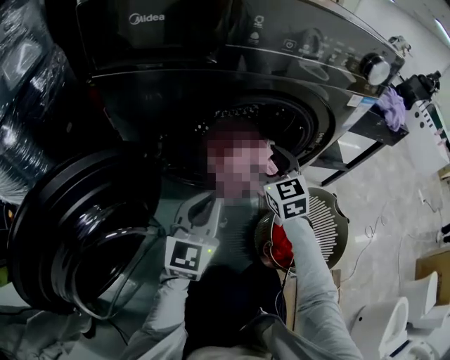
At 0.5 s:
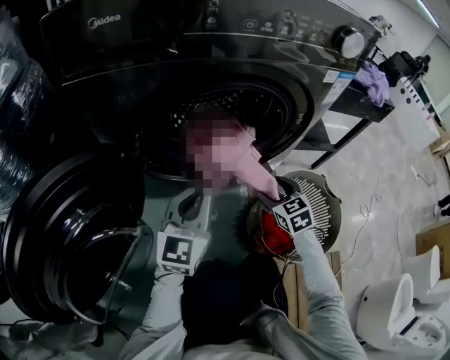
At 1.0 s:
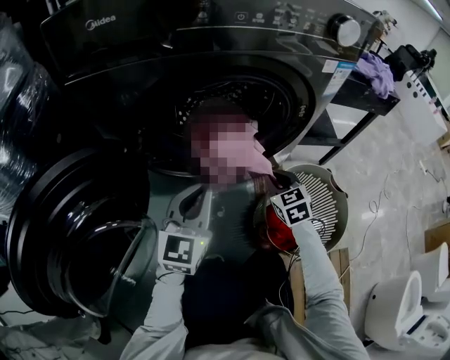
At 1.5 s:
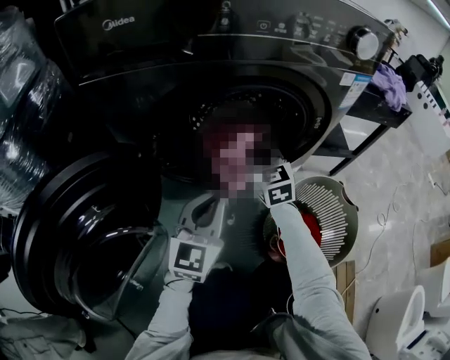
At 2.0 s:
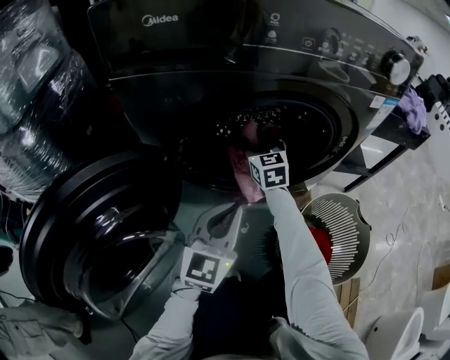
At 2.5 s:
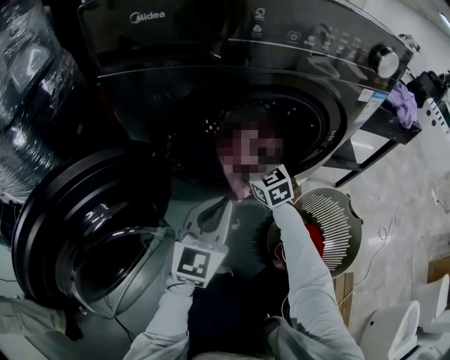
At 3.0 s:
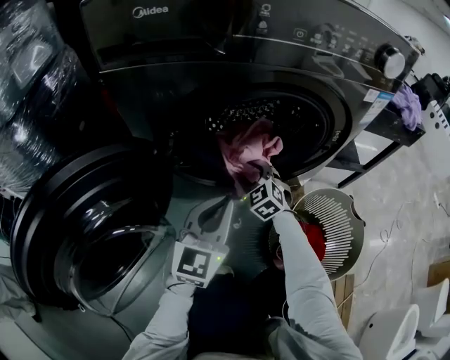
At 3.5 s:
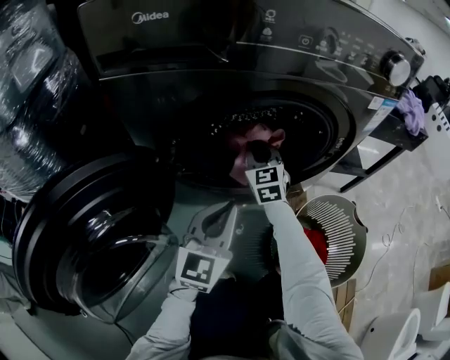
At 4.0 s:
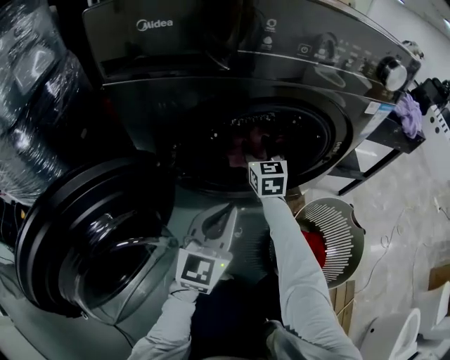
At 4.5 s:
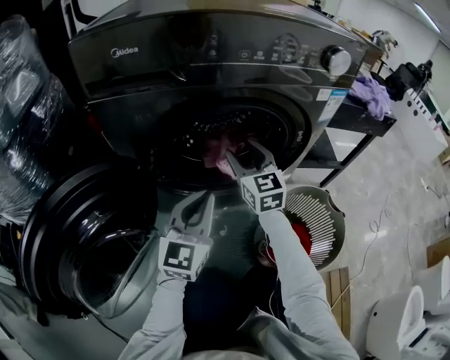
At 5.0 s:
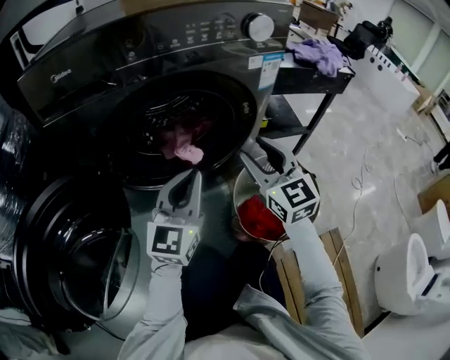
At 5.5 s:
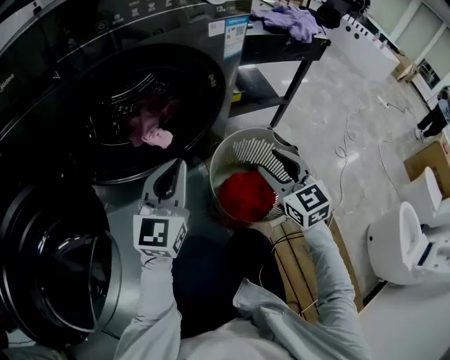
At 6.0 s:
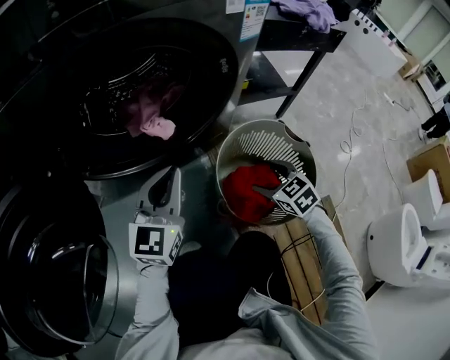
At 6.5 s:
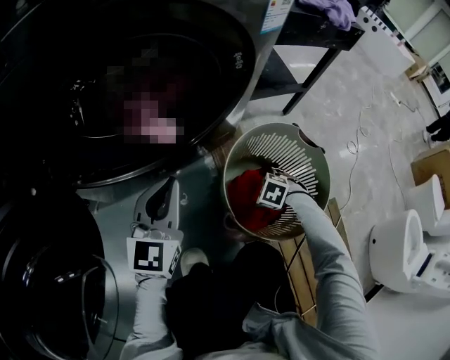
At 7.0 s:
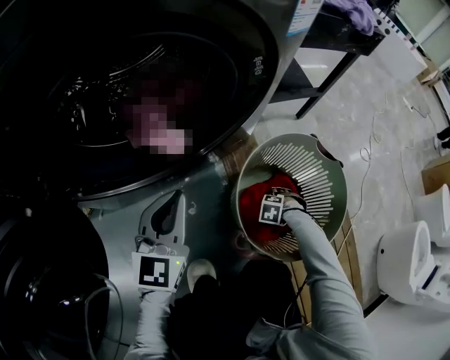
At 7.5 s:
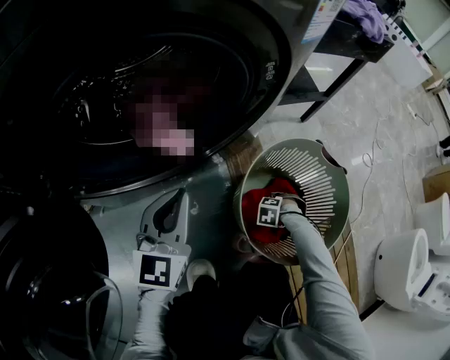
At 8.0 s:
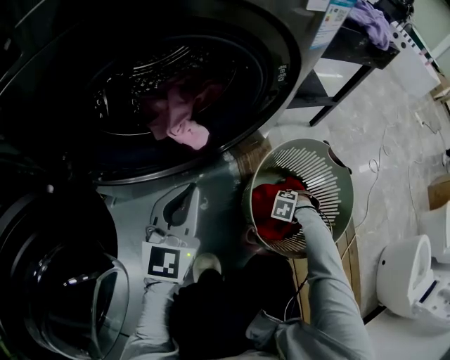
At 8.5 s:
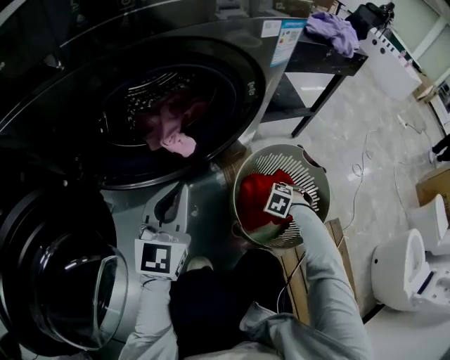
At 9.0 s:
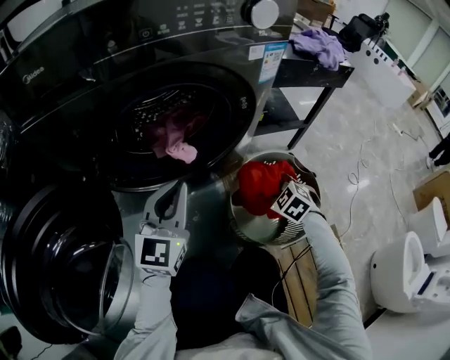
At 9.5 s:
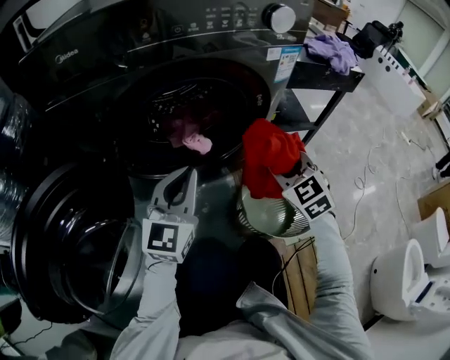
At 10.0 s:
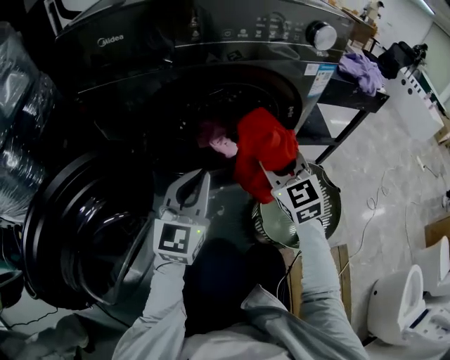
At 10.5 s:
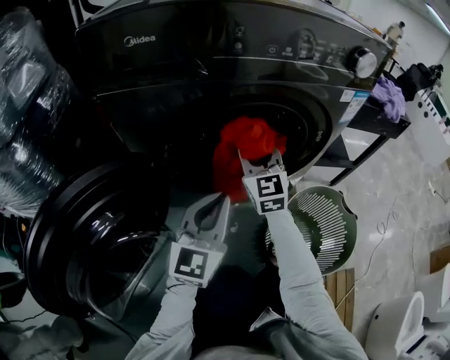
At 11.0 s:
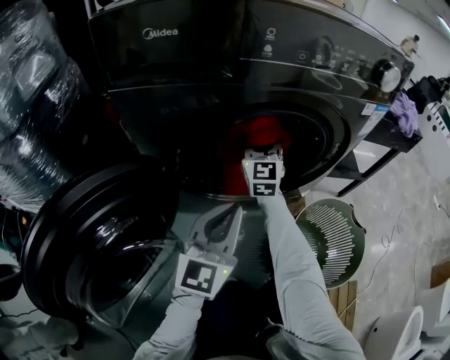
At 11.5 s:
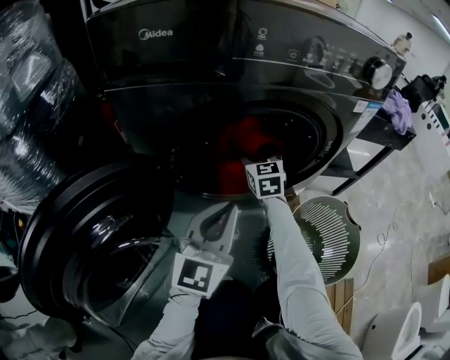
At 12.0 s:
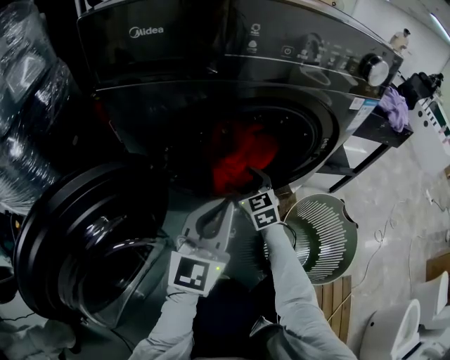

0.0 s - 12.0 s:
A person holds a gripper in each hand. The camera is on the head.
0.0 s - 2.0 s: The right gripper is displaced forward and to the left by approximately 15 cm, and closes and opens again.
2.0 s - 4.0 s: The right gripper reaches some 10 cm downward, then returns, and closes and opens again.
4.0 s - 6.0 s: The left gripper heads to the right, covering about 10 cm, while the right gripper heads to the right, backward and downward, covering approximately 40 cm, and tips its fingers downward by some 30 degrees.
6.0 s - 8.0 s: The right gripper moves downward, approximately 25 cm, tilts its fingers some 40 degrees downward, and closes; the left gripper heads downward, covering about 5 cm.
8.0 s - 10.0 s: The right gripper goes some 50 cm upward, and points its fingers some 70 degrees further upward. Meanwhile the left gripper moves upward, approximately 15 cm.
10.0 s - 12.0 s: The right gripper is displaced downward, to the left and forward by roughly 20 cm, and opens up.

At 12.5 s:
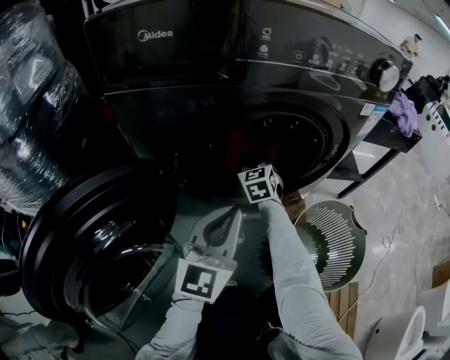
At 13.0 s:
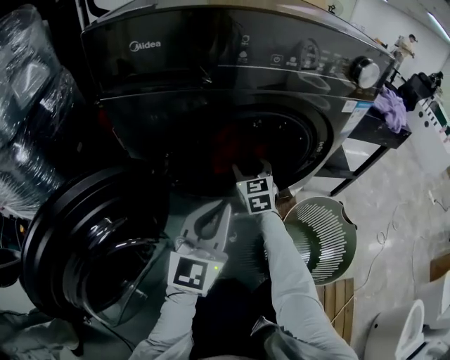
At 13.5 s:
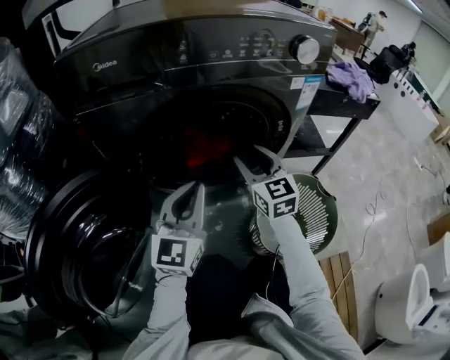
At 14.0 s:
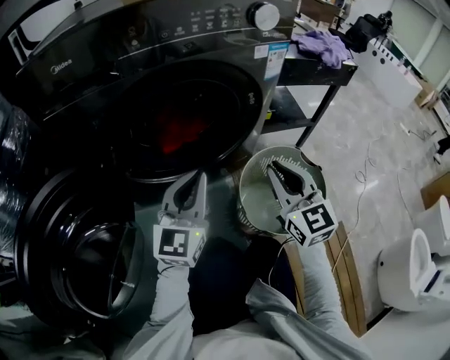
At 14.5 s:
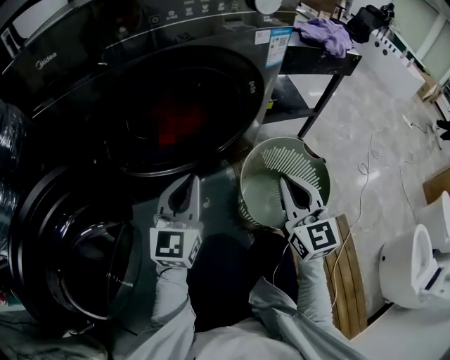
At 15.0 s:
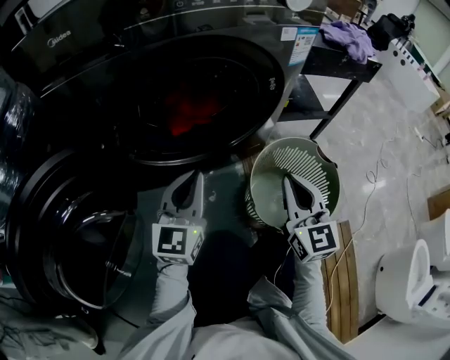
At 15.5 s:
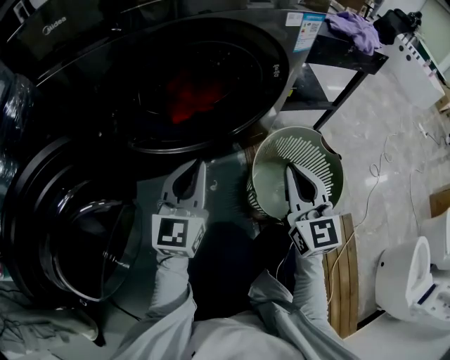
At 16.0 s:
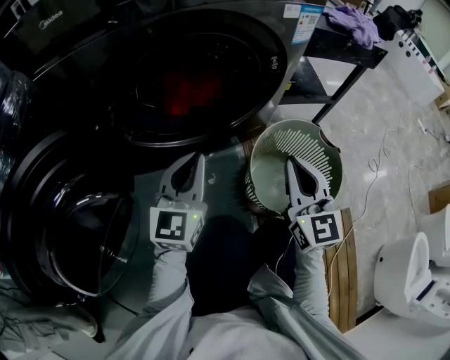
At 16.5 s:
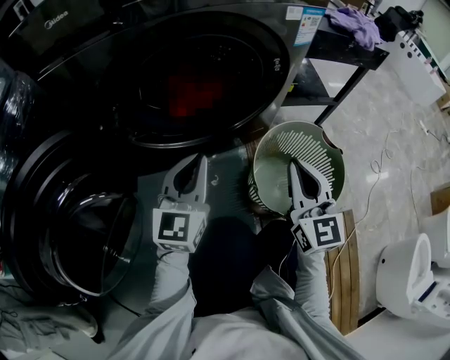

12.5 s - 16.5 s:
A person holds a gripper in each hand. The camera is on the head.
12.5 s - 14.5 s: The right gripper goes approximately 40 cm backward and to the right, and changes its angle by roughly 30 degrees, while the left gripper is displaced to the right by roughly 5 cm.
14.5 s - 16.5 s: The grippers make only small movements.

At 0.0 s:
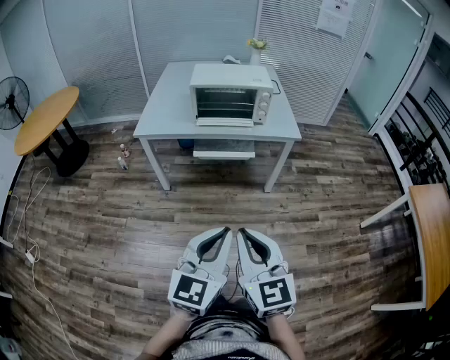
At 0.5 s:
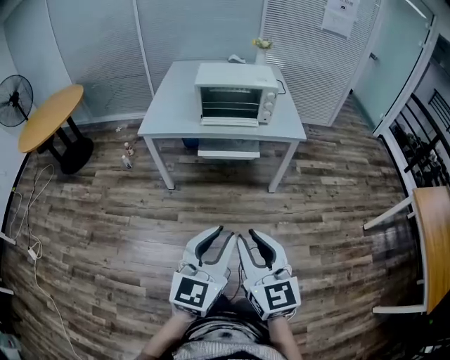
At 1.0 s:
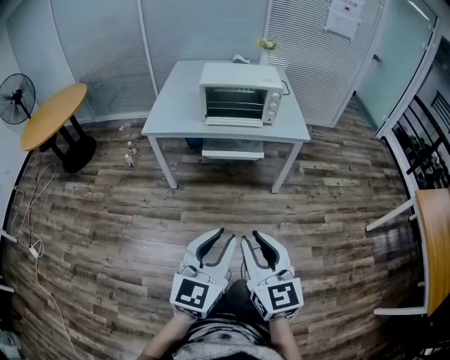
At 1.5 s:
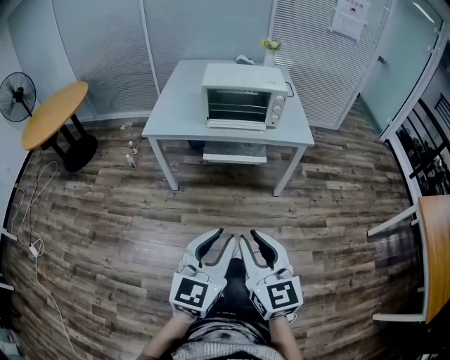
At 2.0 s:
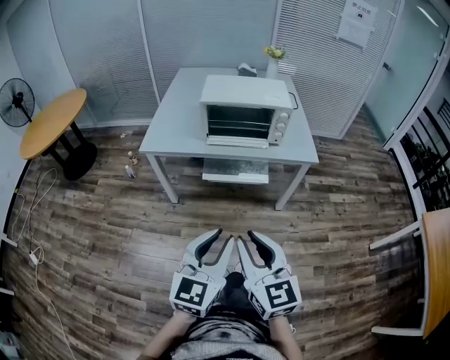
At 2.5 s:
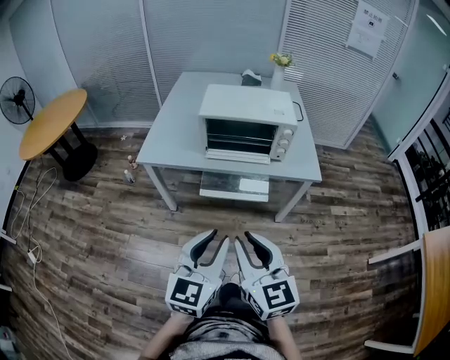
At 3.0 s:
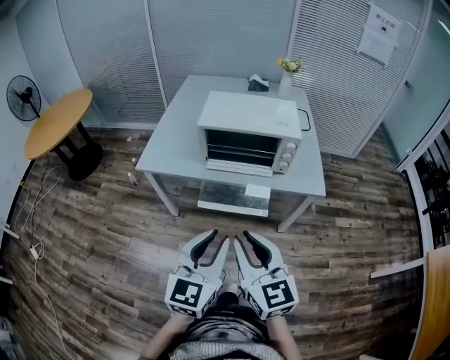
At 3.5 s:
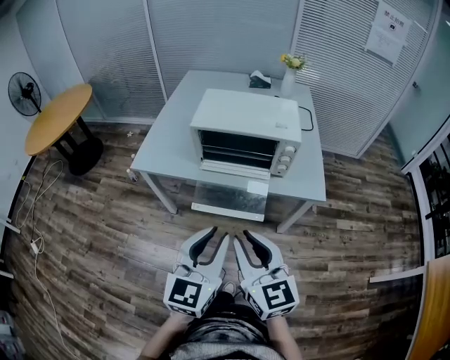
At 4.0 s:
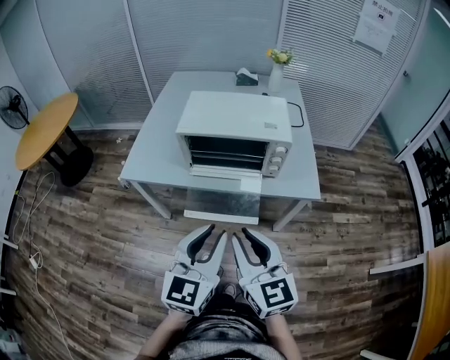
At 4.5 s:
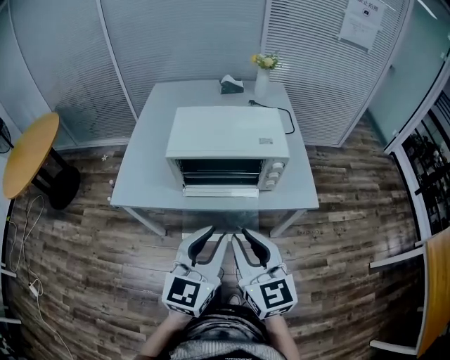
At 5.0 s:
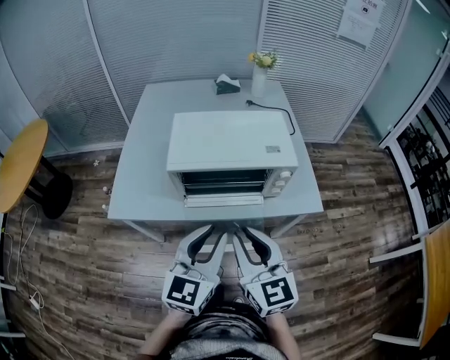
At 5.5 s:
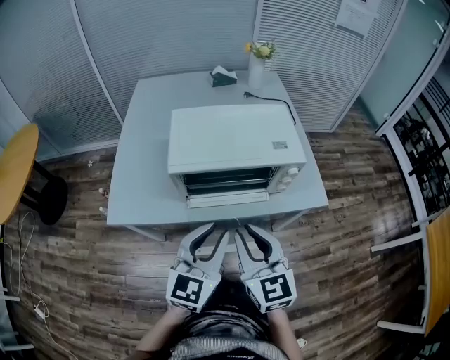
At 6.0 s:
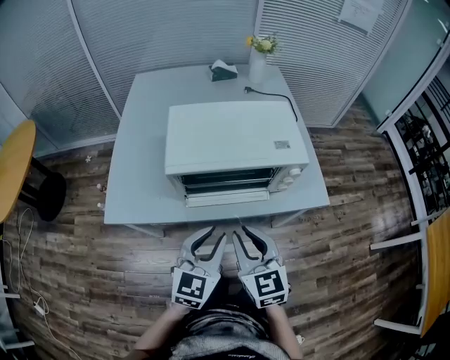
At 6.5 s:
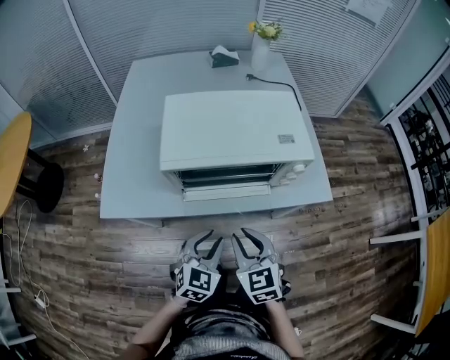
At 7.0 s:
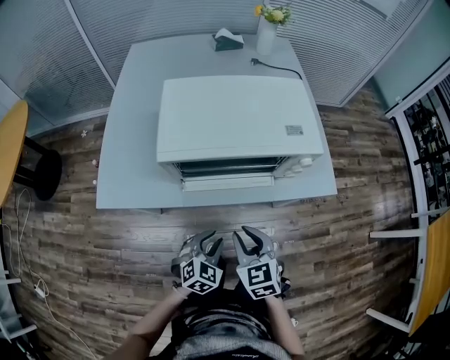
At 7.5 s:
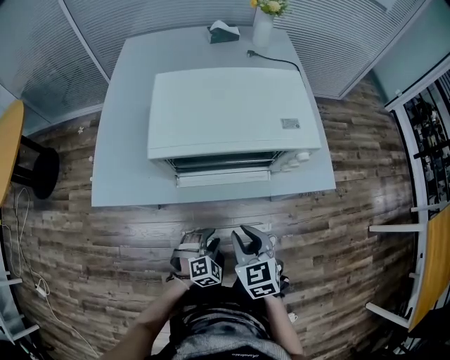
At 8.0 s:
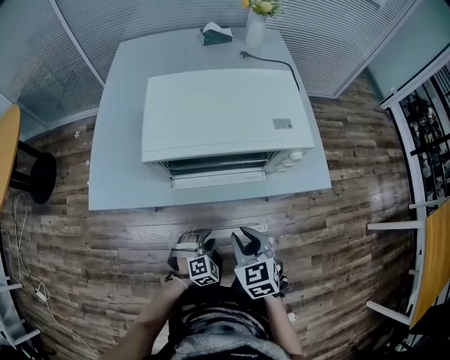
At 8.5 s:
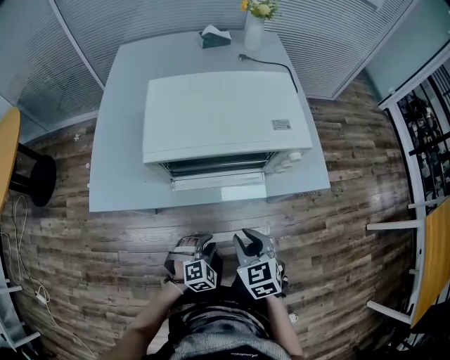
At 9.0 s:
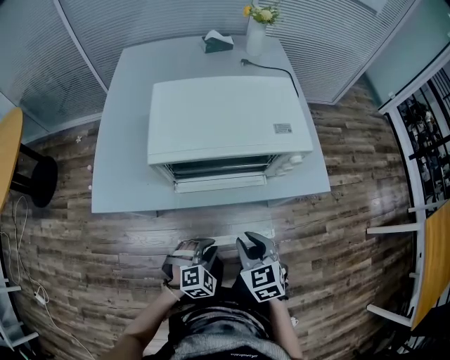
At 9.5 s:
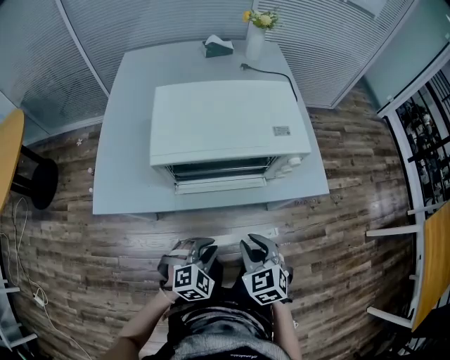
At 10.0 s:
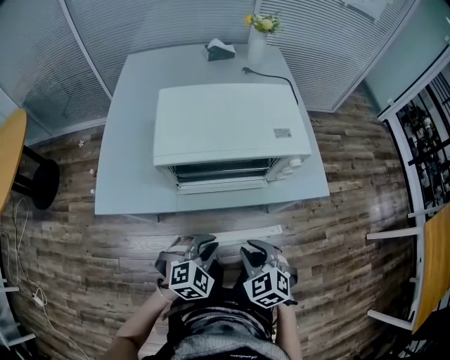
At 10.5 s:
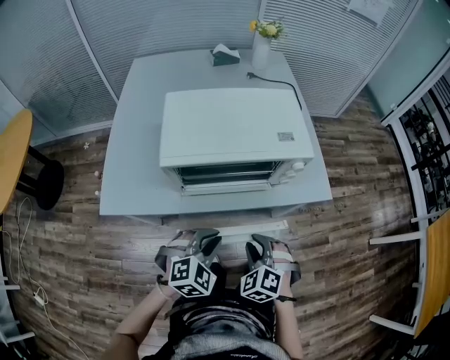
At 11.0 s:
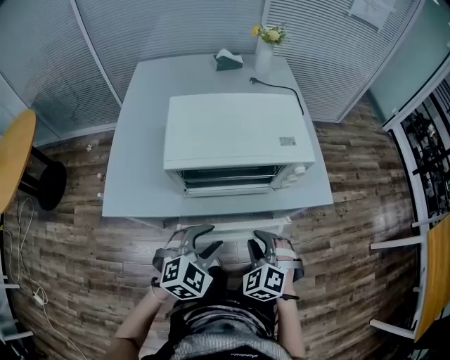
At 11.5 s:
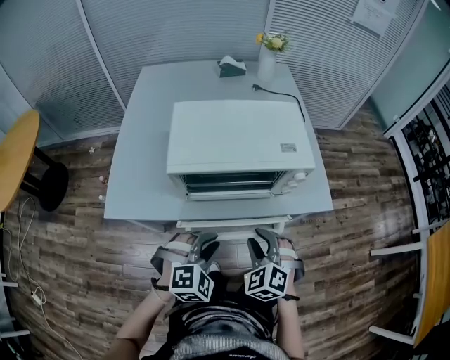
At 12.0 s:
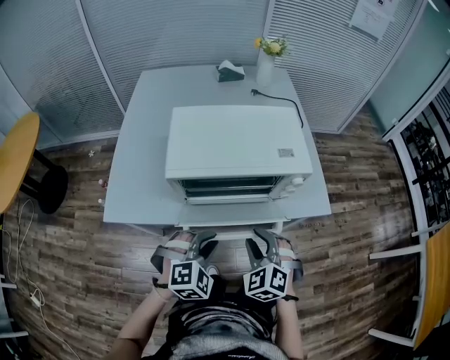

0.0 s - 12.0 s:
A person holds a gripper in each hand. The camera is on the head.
0.0 s - 2.0 s: The grippers both shift forward by approximately 15 cm. The left gripper opens up.
2.0 s - 4.0 s: Both grippers travel together forward, about 25 cm.
4.0 s - 6.0 s: Both grippers move forward, downward and to the left, roughly 20 cm.
6.0 s - 8.0 s: The right gripper goes roughly 15 cm downward, and changes its angle by approximately 20 degrees; the left gripper is displaced downward by about 30 cm, and points its fingers roughly 40 degrees further downward.
8.0 s - 10.0 s: The left gripper is displaced upward by some 15 cm, and closes up.
10.0 s - 12.0 s: The left gripper shifts roughly 5 cm upward, while the right gripper travels forward by approximately 5 cm.
